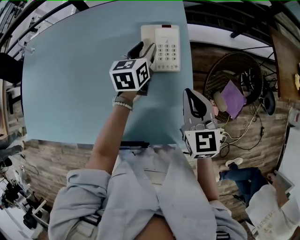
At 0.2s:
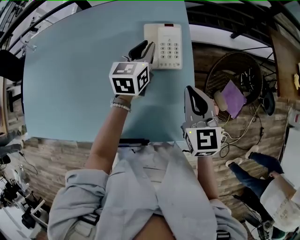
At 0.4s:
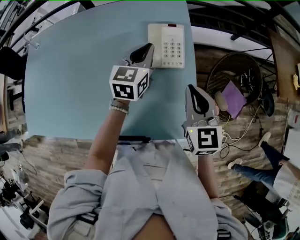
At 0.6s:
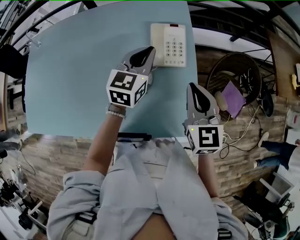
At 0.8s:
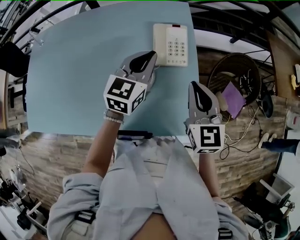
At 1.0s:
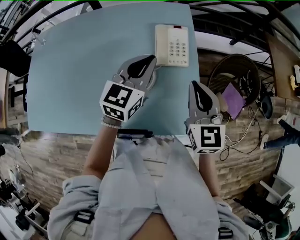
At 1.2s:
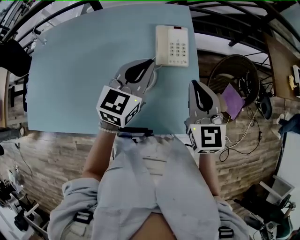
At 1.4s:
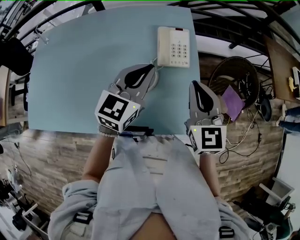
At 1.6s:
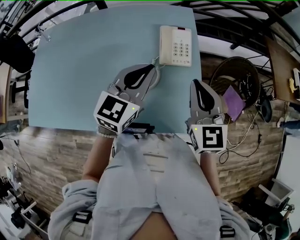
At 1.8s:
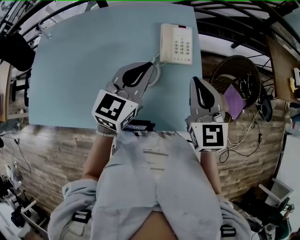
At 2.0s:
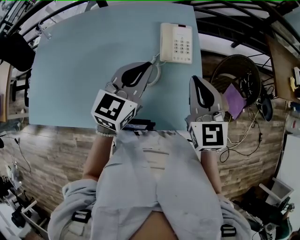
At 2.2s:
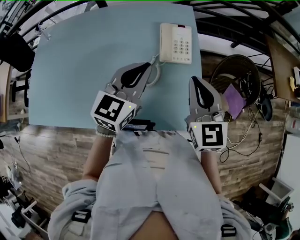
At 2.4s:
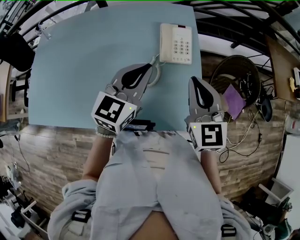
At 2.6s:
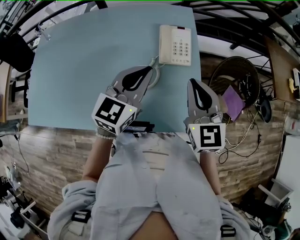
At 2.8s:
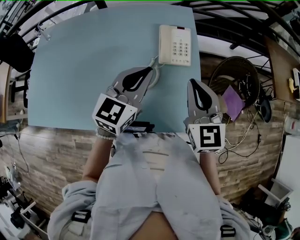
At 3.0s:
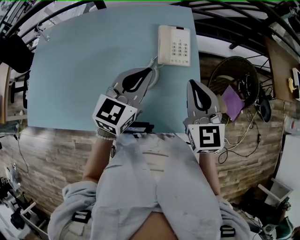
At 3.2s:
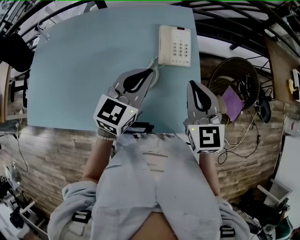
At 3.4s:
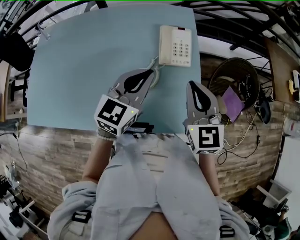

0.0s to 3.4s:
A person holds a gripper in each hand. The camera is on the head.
0.0s to 1.6s: The right gripper shifts some 10 cm upward and backward. The left gripper goes some 25 cm backward and upward, swivels roughly 30 degrees, and closes up.
1.6s to 3.4s: The grippers move only a little.

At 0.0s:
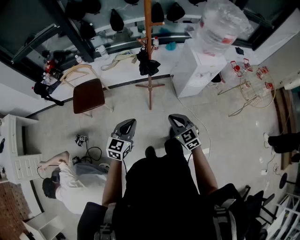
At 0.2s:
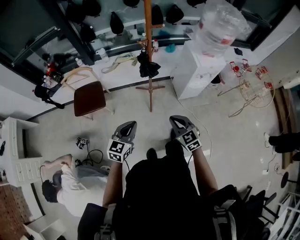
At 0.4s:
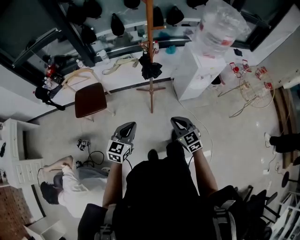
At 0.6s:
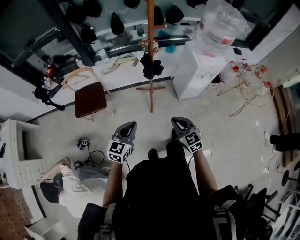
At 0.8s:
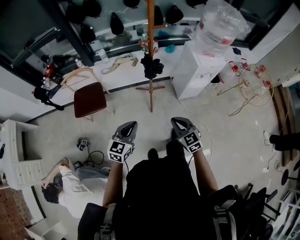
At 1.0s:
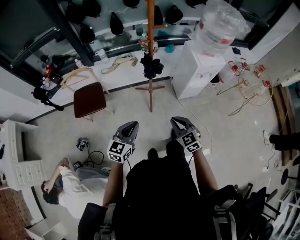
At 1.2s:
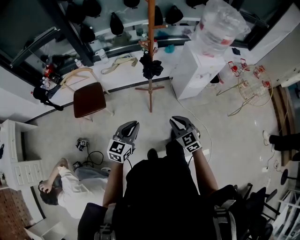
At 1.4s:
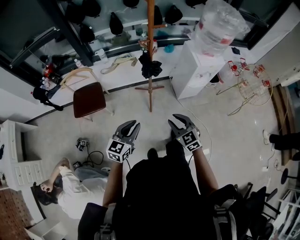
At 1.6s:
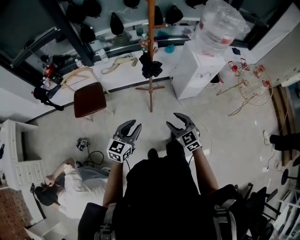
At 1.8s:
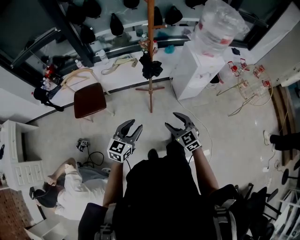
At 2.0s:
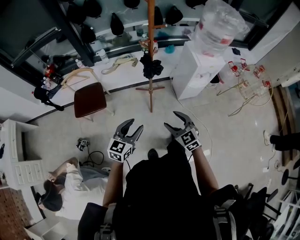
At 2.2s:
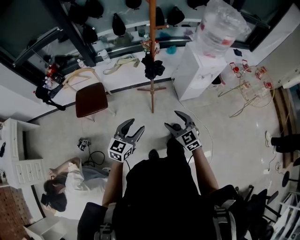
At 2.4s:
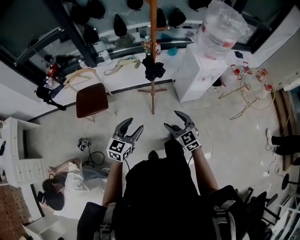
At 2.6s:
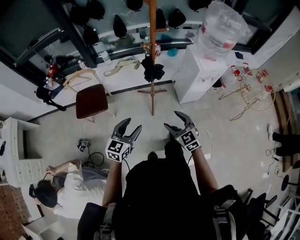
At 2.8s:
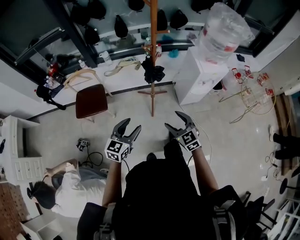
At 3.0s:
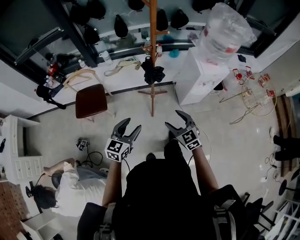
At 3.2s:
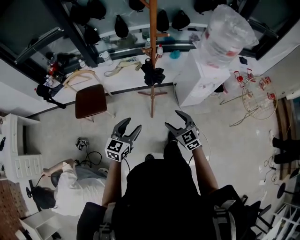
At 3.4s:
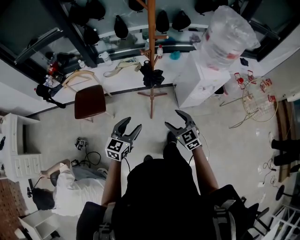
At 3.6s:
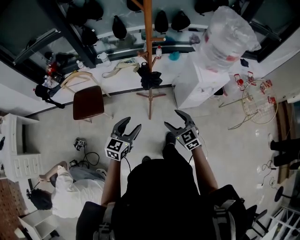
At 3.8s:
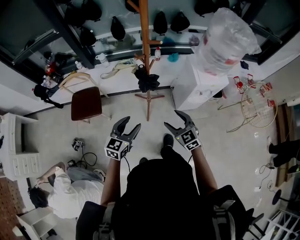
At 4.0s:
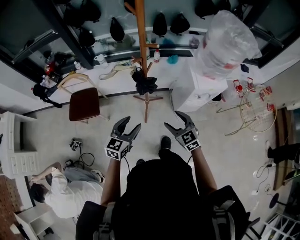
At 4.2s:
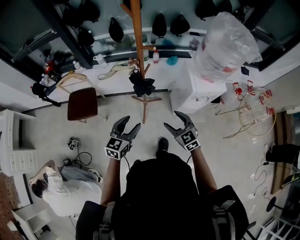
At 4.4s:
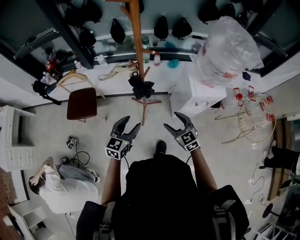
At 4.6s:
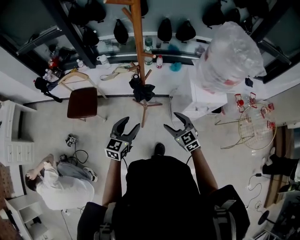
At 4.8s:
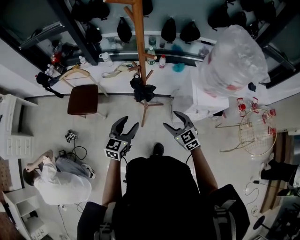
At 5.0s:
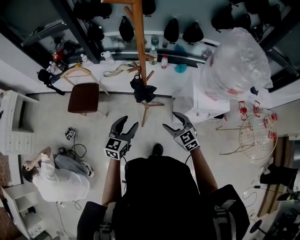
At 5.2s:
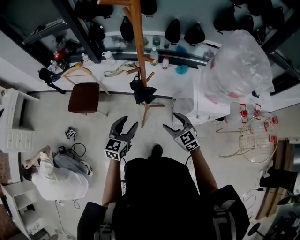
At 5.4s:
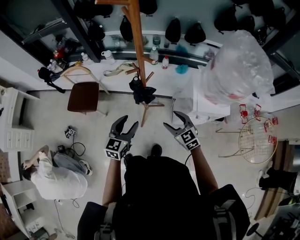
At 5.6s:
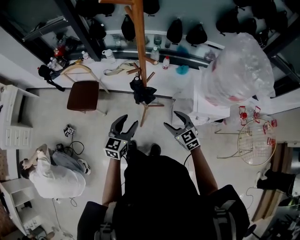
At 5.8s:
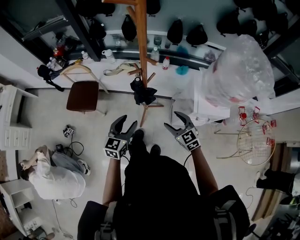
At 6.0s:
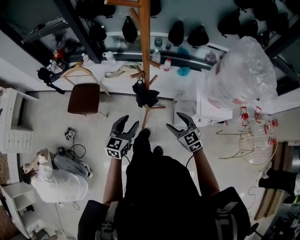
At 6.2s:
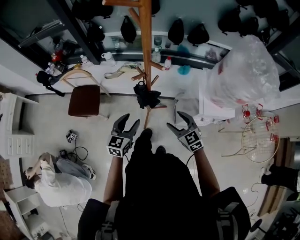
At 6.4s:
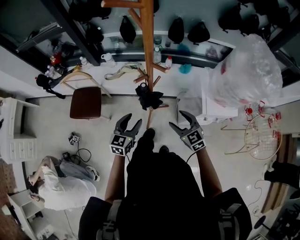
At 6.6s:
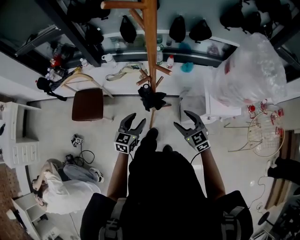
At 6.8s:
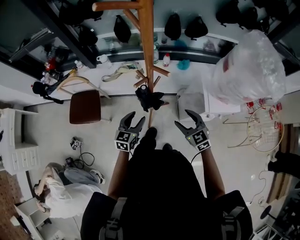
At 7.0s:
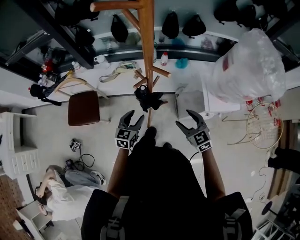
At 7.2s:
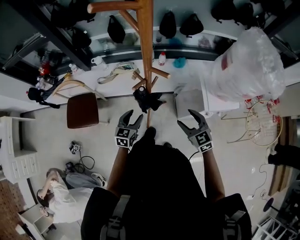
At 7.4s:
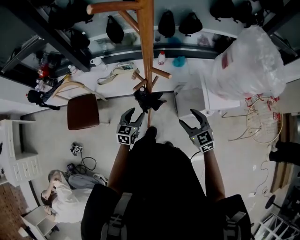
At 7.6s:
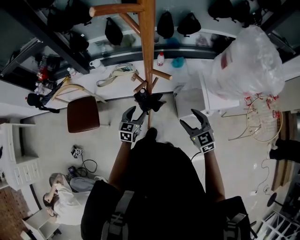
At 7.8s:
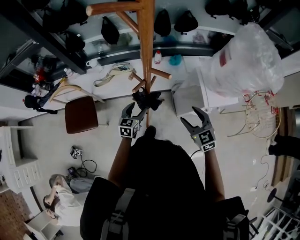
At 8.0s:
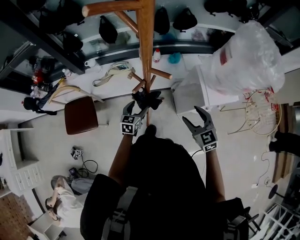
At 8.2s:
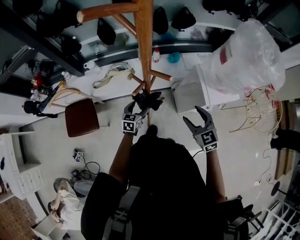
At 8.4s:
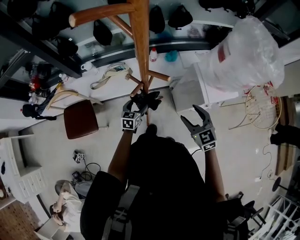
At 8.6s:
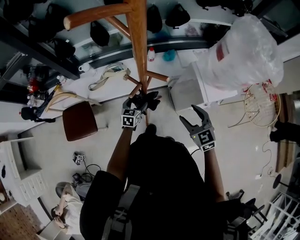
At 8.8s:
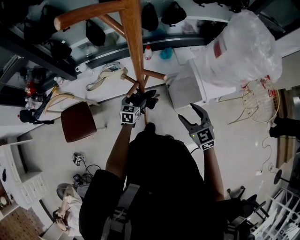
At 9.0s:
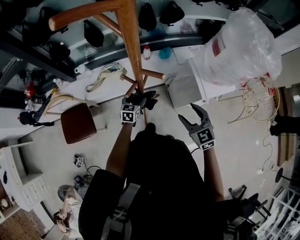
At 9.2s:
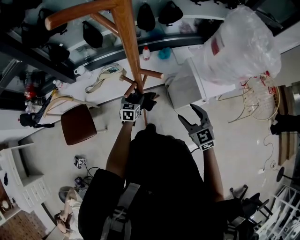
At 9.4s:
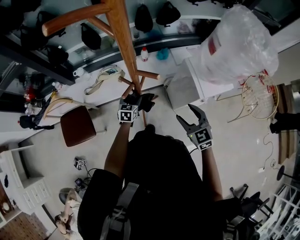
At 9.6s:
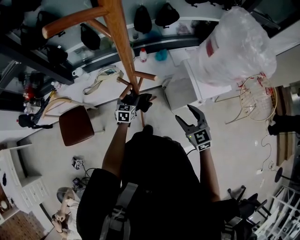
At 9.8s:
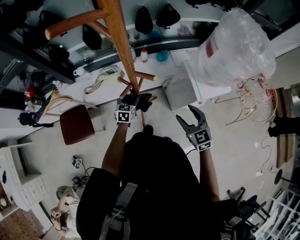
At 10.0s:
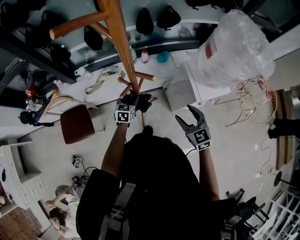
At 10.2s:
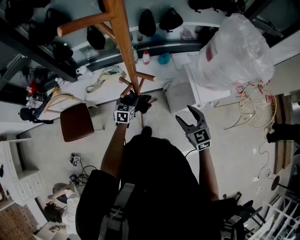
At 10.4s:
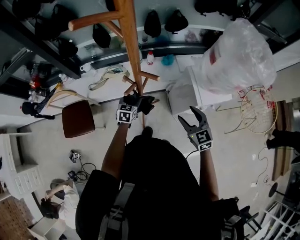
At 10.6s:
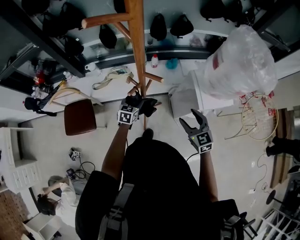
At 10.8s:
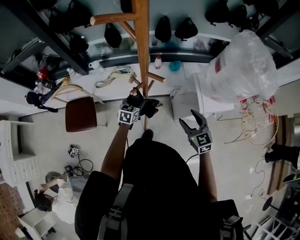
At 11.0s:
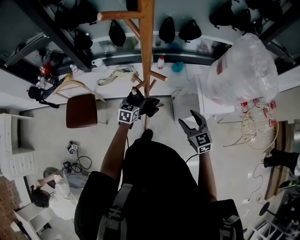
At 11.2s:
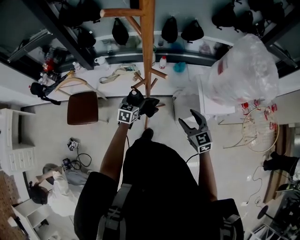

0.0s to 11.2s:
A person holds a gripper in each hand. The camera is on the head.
0.0s to 1.6s: The right gripper opens.
1.6s to 3.2s: Both grippers travel together forward, approximately 5 cm. The left gripper opens its fingers.
3.2s to 4.8s: Both grippers move forward and to the right, about 20 cm.
4.8s to 6.4s: Both grippers move forward, some 10 cm.
6.4s to 8.0s: The left gripper is displaced downward and forward by some 20 cm.
8.0s to 9.6s: The left gripper goes roughly 5 cm forward.
9.6s to 11.2s: The left gripper heads upward and backward, covering roughly 10 cm.

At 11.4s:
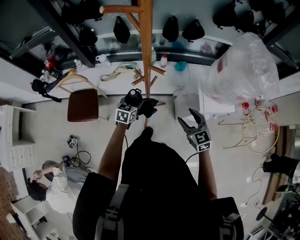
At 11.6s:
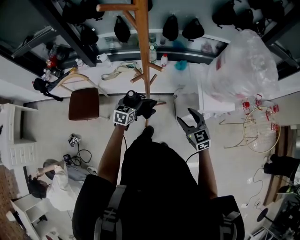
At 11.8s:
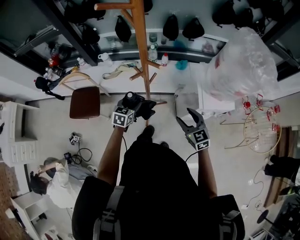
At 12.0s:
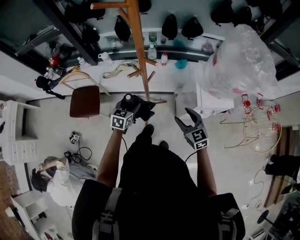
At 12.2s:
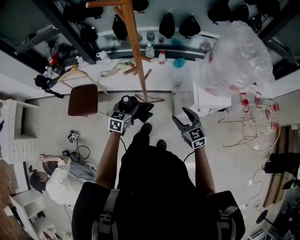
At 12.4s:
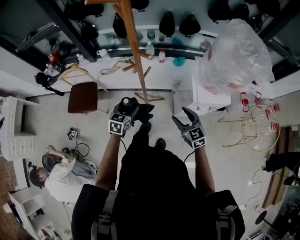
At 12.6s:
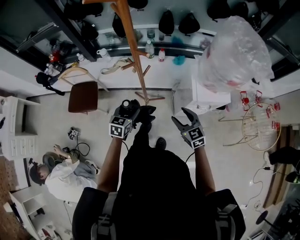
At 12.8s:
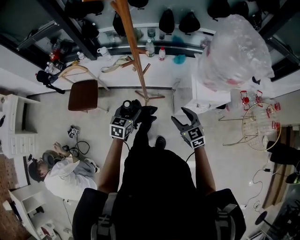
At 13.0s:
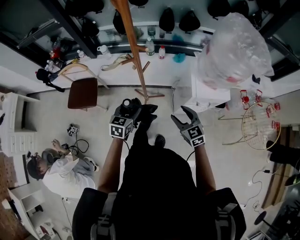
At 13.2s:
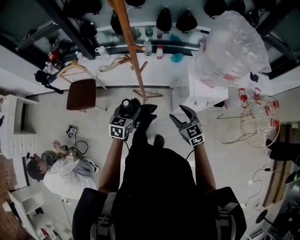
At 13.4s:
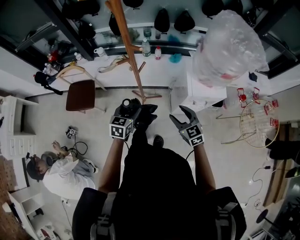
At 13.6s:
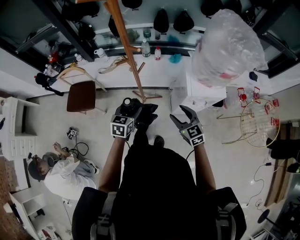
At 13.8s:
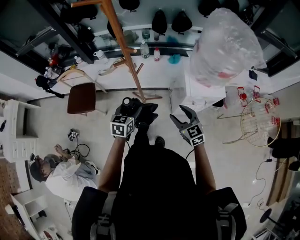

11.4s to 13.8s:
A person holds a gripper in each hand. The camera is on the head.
11.4s to 12.6s: The right gripper travels backward by roughly 5 cm. Meanwhile the left gripper goes some 15 cm backward.
12.6s to 13.8s: The left gripper changes place by about 5 cm.

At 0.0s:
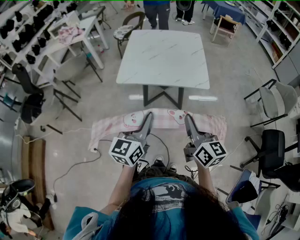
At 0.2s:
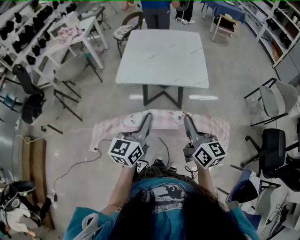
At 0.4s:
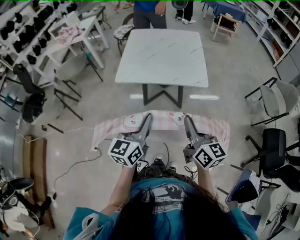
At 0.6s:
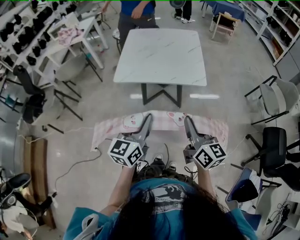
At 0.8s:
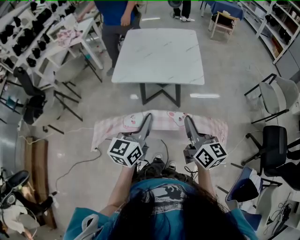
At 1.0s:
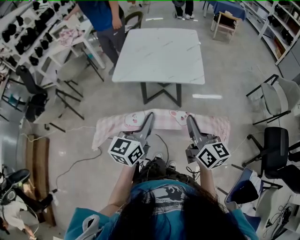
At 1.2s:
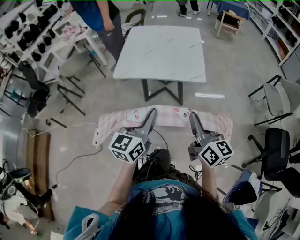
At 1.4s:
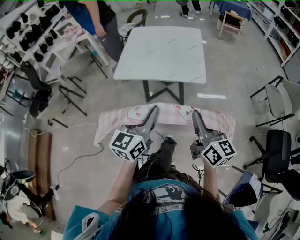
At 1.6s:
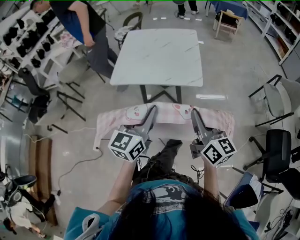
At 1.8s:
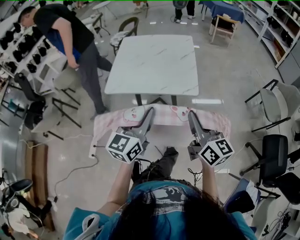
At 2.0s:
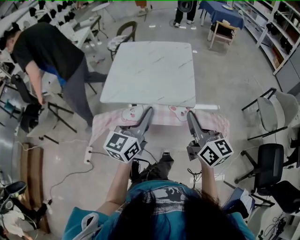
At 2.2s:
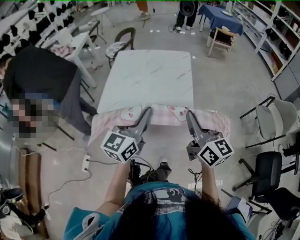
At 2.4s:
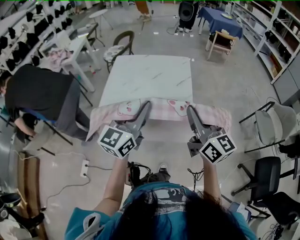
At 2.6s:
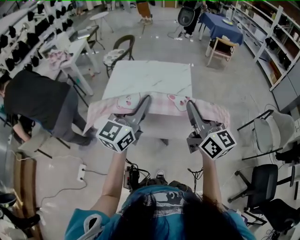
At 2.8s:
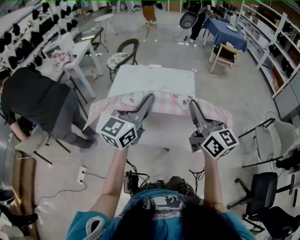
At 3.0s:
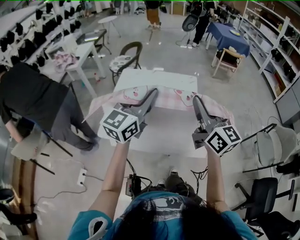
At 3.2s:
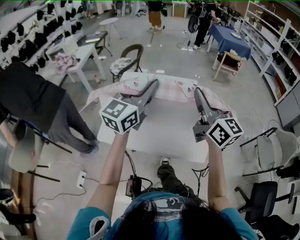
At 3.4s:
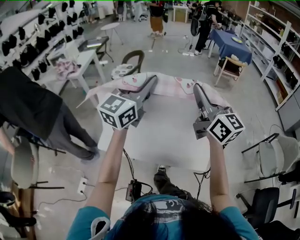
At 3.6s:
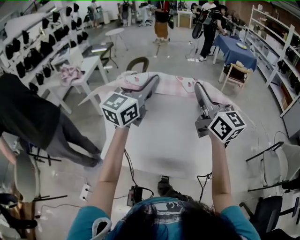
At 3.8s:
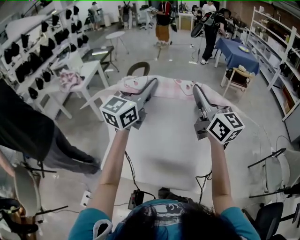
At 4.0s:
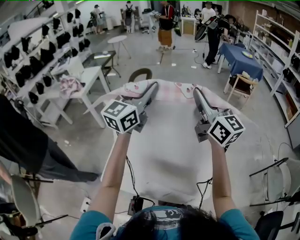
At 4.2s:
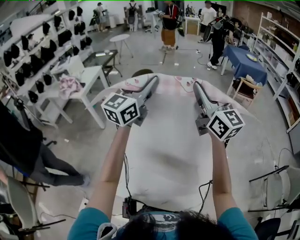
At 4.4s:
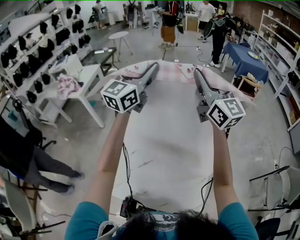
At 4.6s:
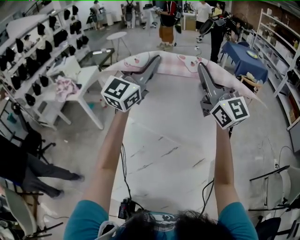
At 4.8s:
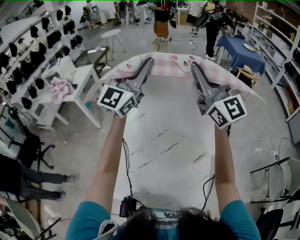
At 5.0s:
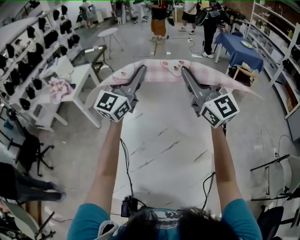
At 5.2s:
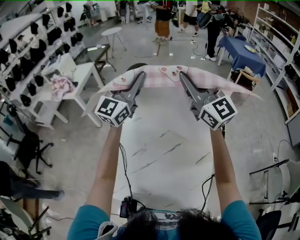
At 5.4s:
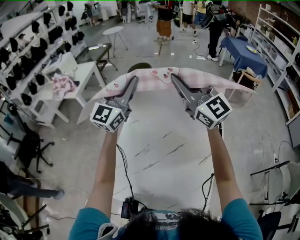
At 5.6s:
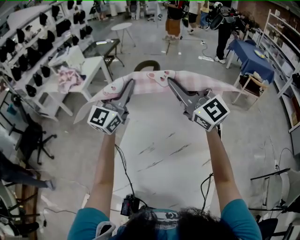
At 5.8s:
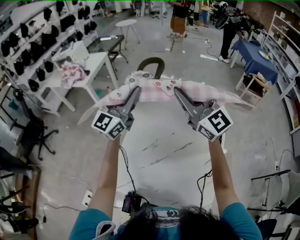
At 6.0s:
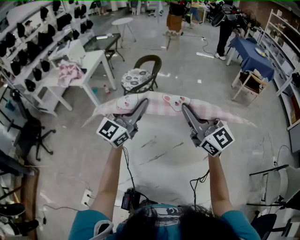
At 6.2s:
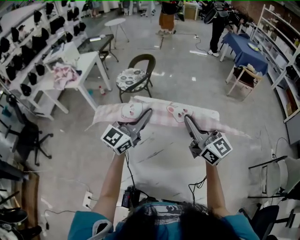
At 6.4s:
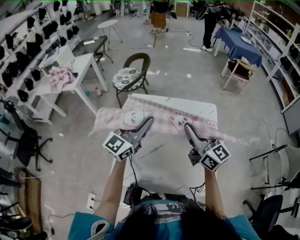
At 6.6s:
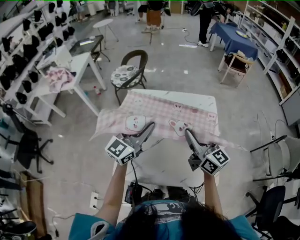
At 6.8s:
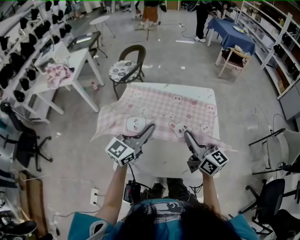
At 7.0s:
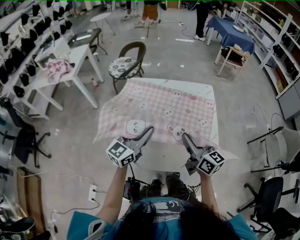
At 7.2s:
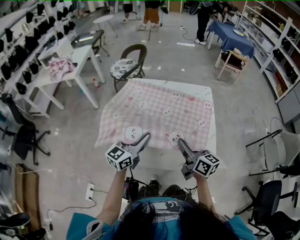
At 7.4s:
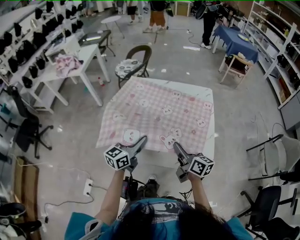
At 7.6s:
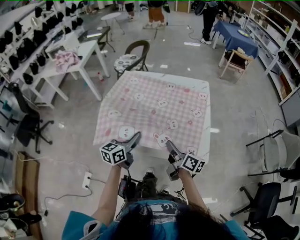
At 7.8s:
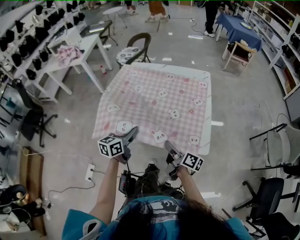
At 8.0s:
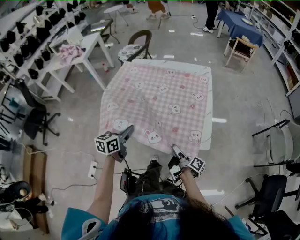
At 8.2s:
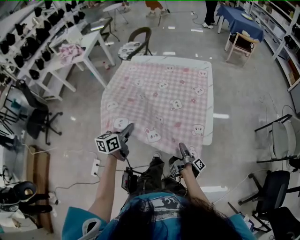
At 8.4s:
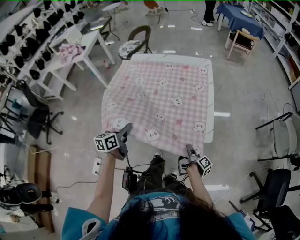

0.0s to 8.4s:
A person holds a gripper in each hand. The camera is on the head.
0.0s to 1.4s: Both grippers travel together to the right, some 10 cm.
1.4s to 2.8s: The two grippers go some 35 cm forward.
2.8s to 4.2s: The grippers both shift forward by approximately 35 cm.
4.2s to 5.6s: Both grippers travel together to the left, some 15 cm. The right gripper swivels roughly 30 degrees.
5.6s to 7.0s: Both grippers move backward and downward, about 35 cm. The right gripper rotates around the line of its fingers by about 40 degrees, clockwise from behind. Meanwhile the left gripper changes its angle by roughly 40 degrees.
7.0s to 8.4s: The right gripper goes roughly 40 cm downward, backward and to the right, rolls clockwise, seen from behind, by some 80 degrees, and opens, then closes again; the left gripper goes approximately 20 cm downward and backward, and turns by approximately 40 degrees.
